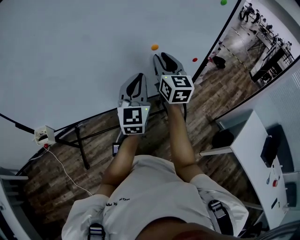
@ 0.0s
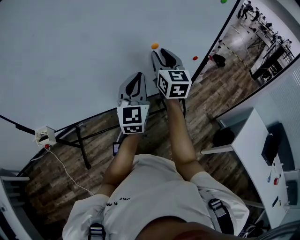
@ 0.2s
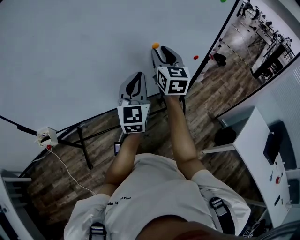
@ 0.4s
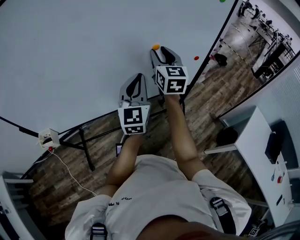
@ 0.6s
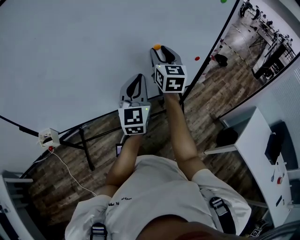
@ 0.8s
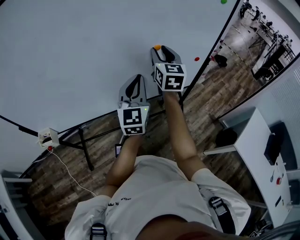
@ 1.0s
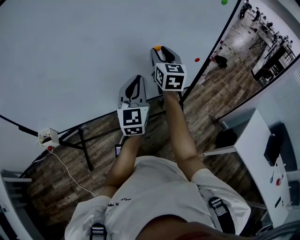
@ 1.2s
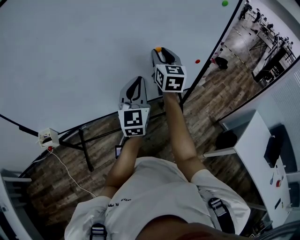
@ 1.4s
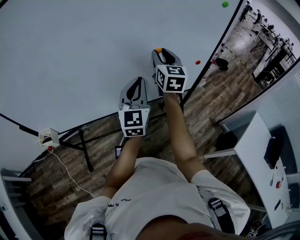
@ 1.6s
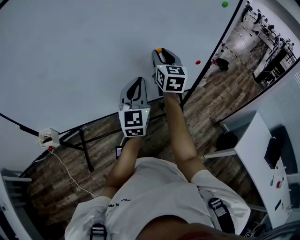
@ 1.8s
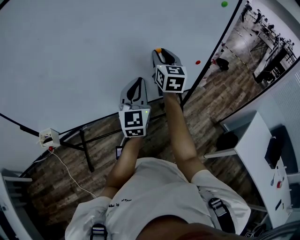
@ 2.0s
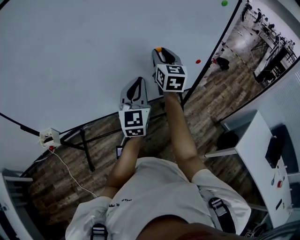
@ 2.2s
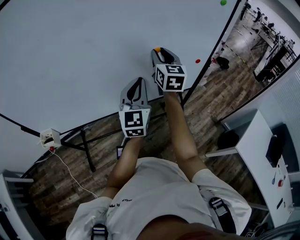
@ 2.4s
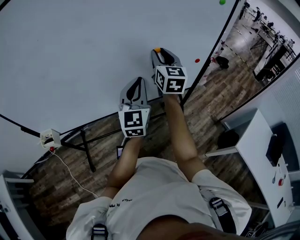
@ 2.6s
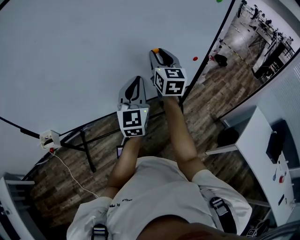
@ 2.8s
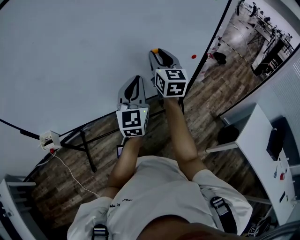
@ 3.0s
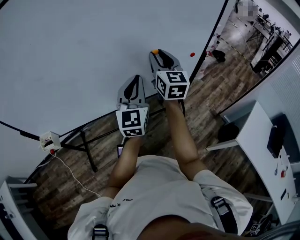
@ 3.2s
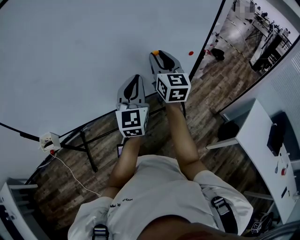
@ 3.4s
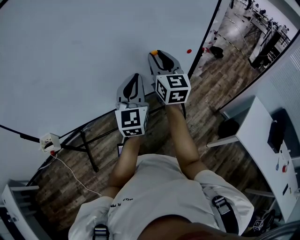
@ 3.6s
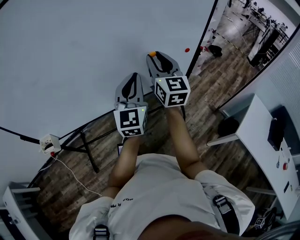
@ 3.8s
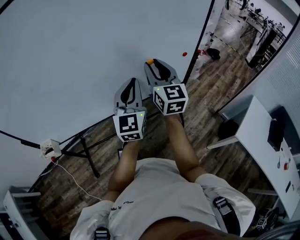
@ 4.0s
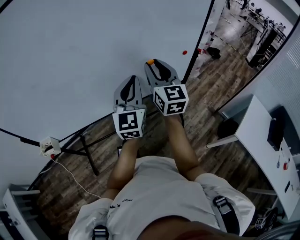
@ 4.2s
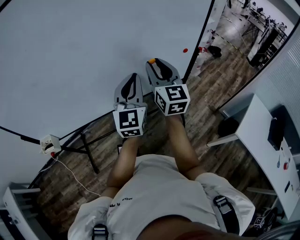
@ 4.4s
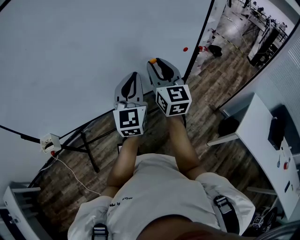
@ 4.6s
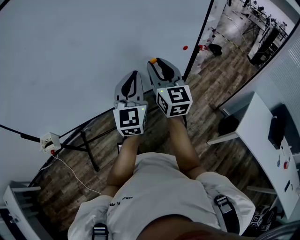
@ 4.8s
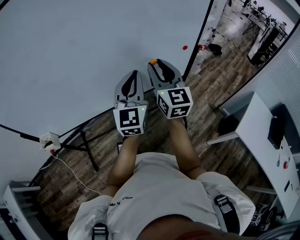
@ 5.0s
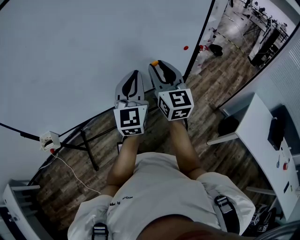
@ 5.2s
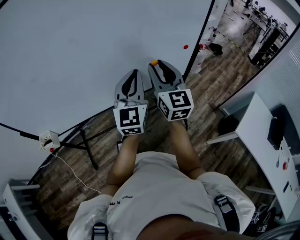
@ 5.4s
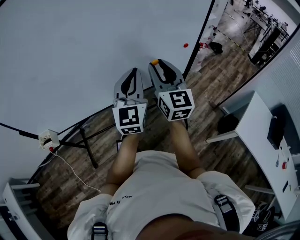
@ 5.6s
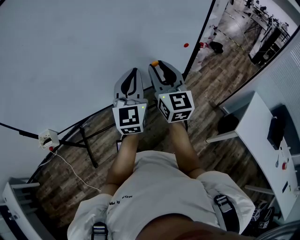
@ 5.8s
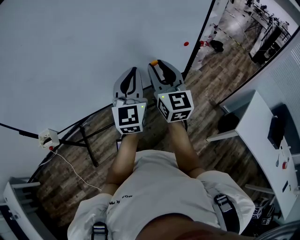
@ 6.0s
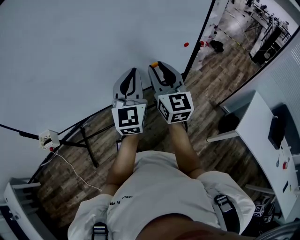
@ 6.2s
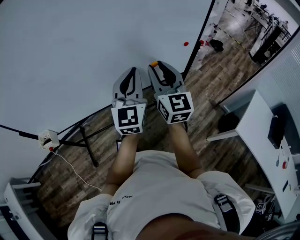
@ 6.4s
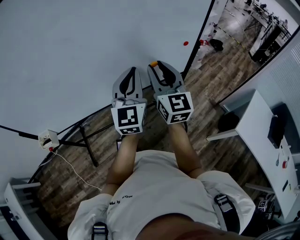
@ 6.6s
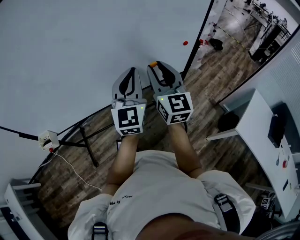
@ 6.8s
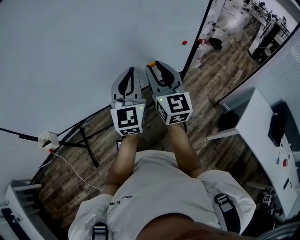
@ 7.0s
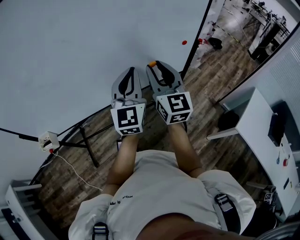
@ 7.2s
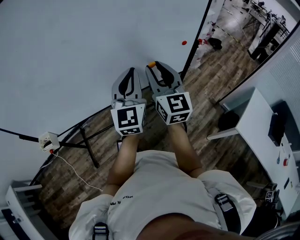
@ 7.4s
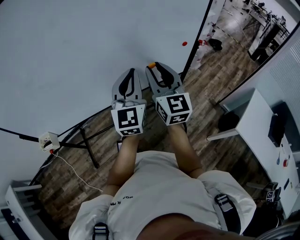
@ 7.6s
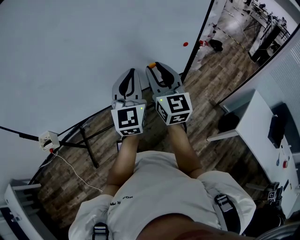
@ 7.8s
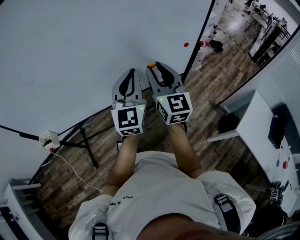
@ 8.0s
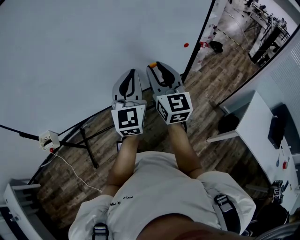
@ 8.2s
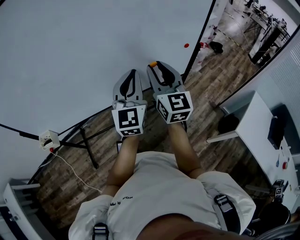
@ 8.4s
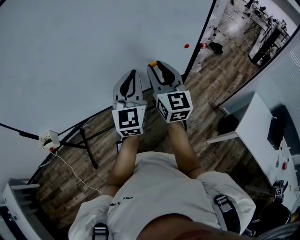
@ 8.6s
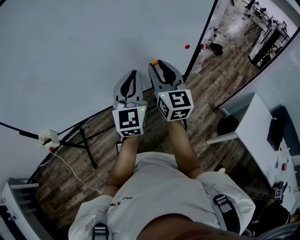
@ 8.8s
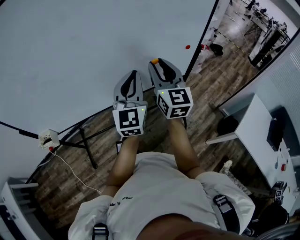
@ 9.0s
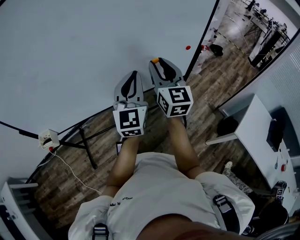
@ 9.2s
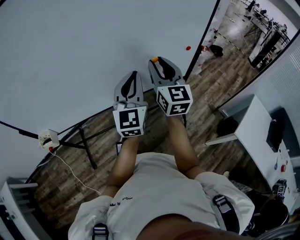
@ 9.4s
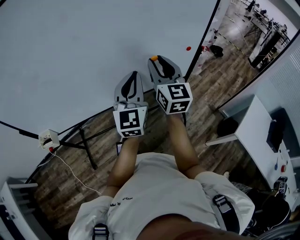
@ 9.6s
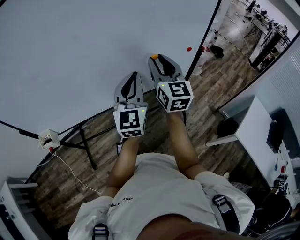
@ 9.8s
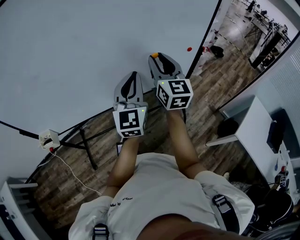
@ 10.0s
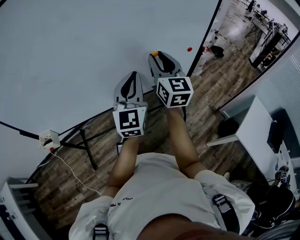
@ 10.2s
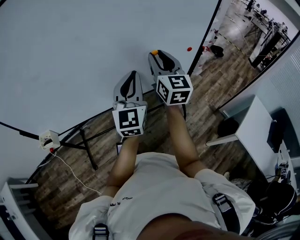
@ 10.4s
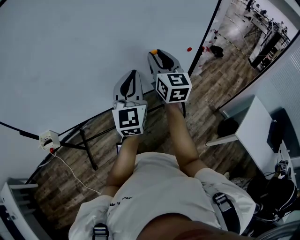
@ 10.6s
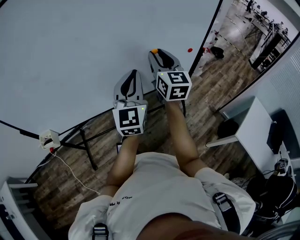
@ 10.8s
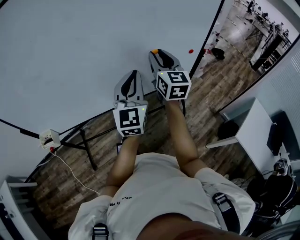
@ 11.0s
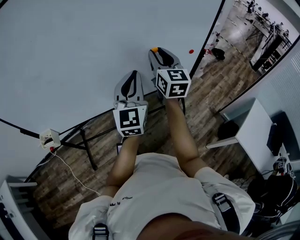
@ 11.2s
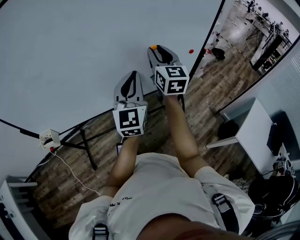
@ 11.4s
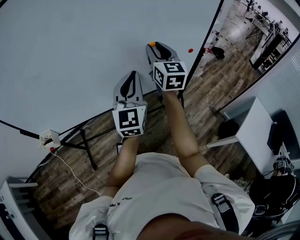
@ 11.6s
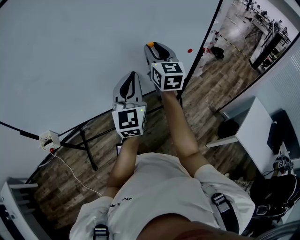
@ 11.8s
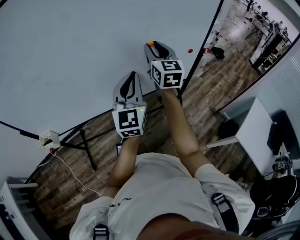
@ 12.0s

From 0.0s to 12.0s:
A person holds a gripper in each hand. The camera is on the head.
From 0.0s to 3.0s: The grippers move only a little.
From 3.0s to 4.4s: The right gripper shifts about 10 cm backward.
From 4.4s to 6.0s: There are only small adjustments of the grippers.
From 6.0s to 7.6s: Neither gripper changes place.
From 7.6s to 9.0s: The grippers move only a little.
From 9.0s to 10.4s: There are only small adjustments of the grippers.
From 10.4s to 12.0s: The right gripper heads forward, covering approximately 5 cm.

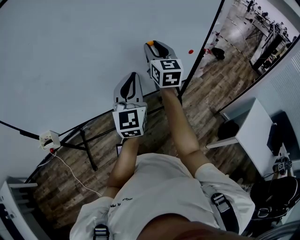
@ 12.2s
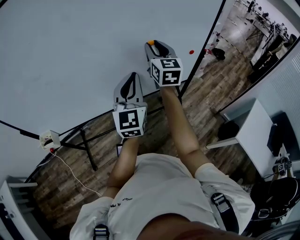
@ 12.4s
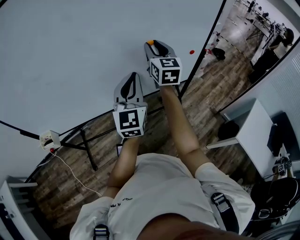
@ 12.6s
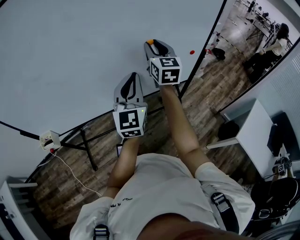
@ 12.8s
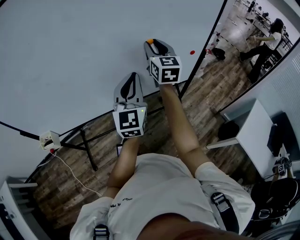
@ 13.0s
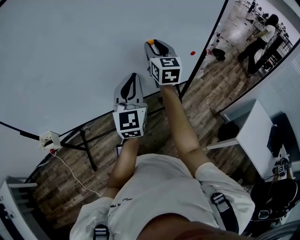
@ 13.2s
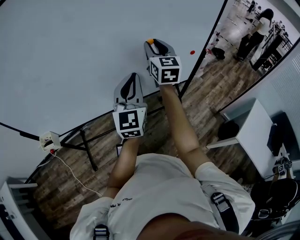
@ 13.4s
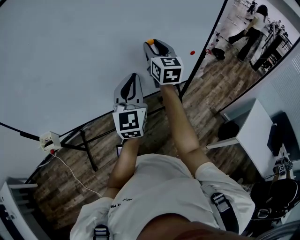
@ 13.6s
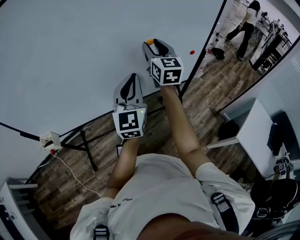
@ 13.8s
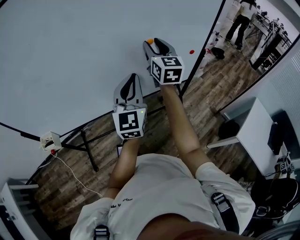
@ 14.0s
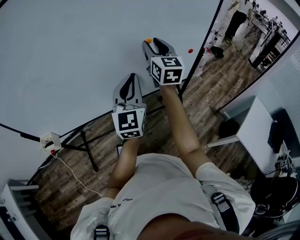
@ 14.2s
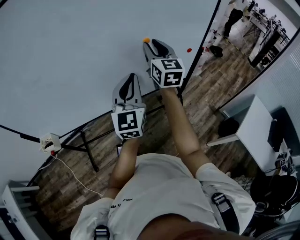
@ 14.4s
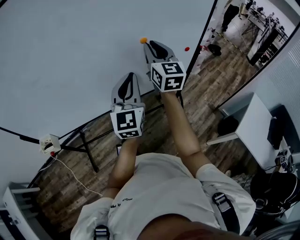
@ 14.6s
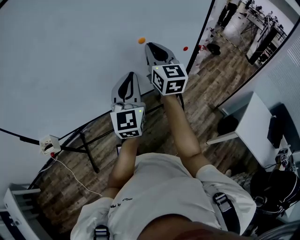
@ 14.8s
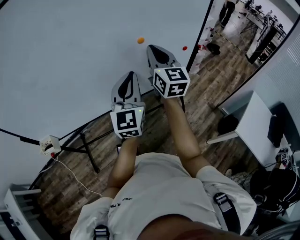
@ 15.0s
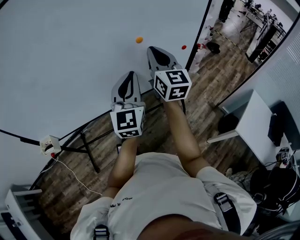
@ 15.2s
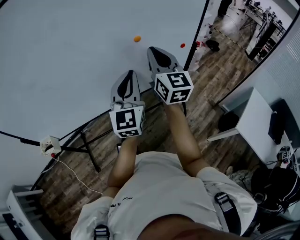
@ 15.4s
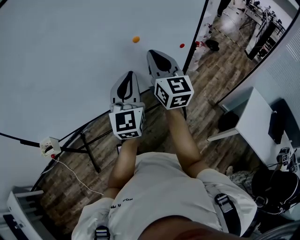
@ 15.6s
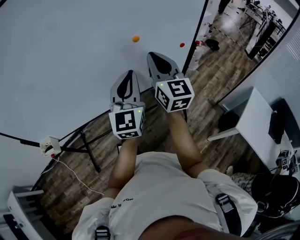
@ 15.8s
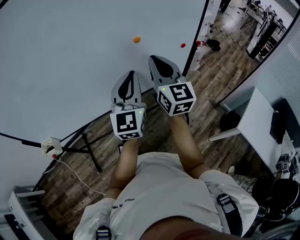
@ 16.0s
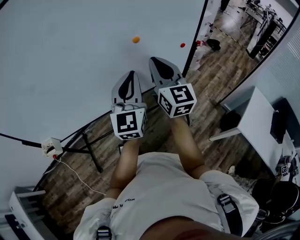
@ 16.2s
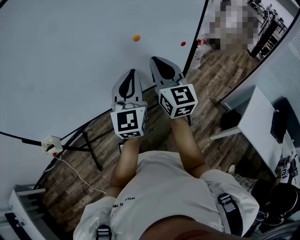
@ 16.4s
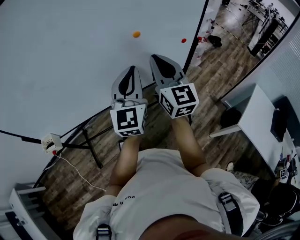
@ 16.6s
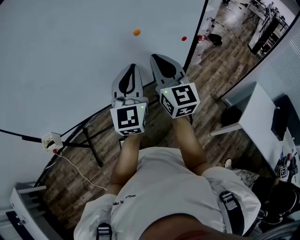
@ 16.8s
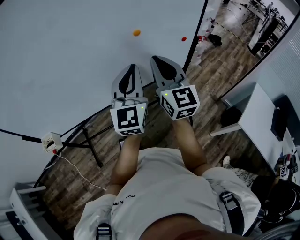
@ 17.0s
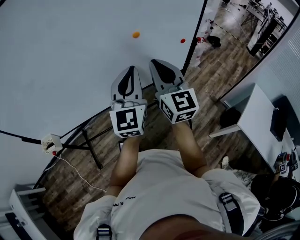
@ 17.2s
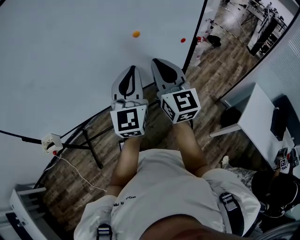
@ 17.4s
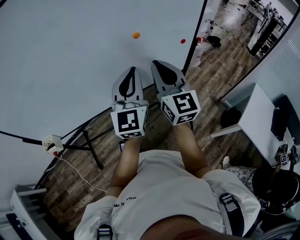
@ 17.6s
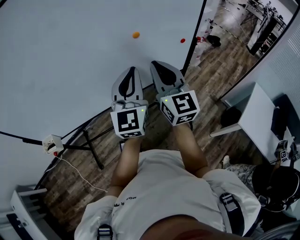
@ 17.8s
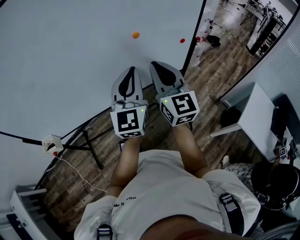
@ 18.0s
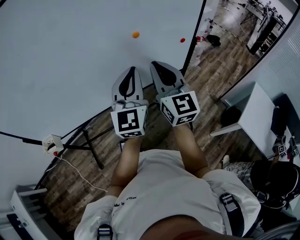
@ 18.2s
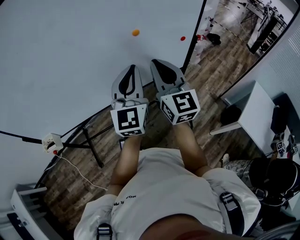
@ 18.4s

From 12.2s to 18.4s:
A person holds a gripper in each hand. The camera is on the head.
From 12.2s to 13.8s: The grippers move only a little.
From 13.8s to 15.4s: The right gripper moves backward, some 10 cm, and closes its fingers.
From 15.4s to 16.8s: The right gripper moves backward, some 5 cm.
From 16.8s to 18.4s: There are only small adjustments of the grippers.

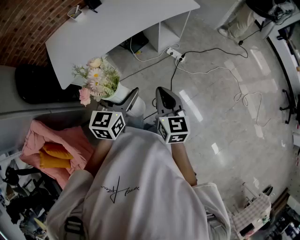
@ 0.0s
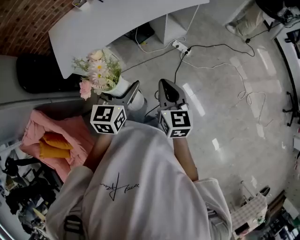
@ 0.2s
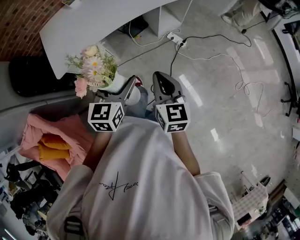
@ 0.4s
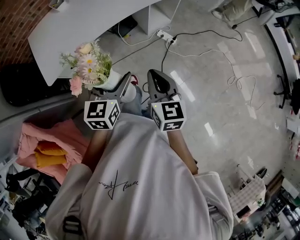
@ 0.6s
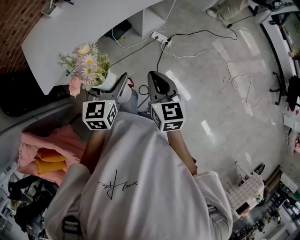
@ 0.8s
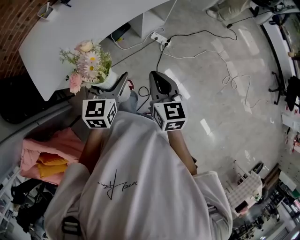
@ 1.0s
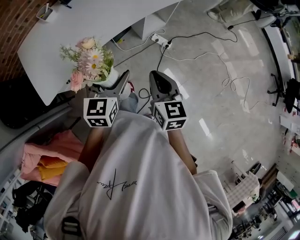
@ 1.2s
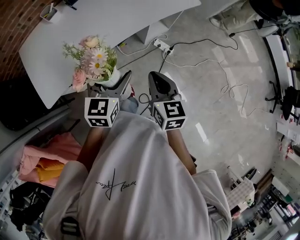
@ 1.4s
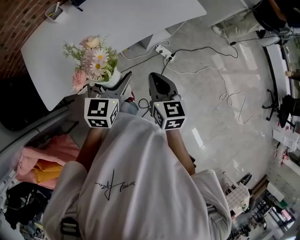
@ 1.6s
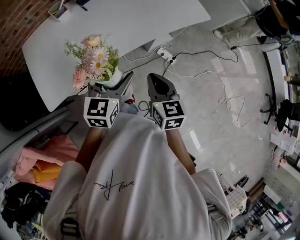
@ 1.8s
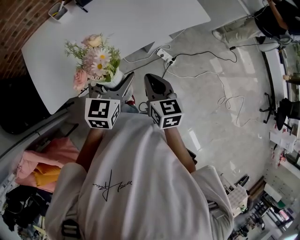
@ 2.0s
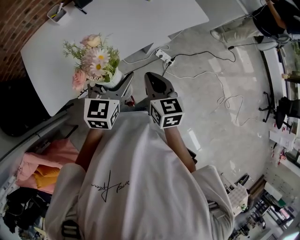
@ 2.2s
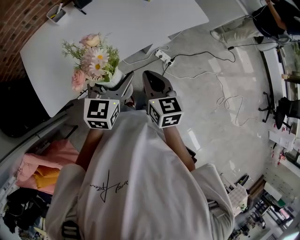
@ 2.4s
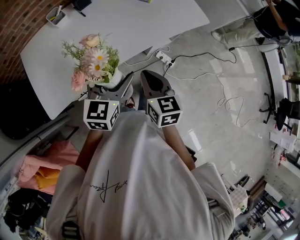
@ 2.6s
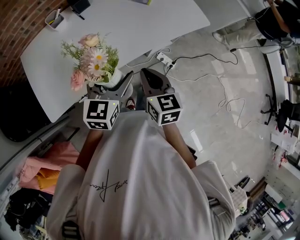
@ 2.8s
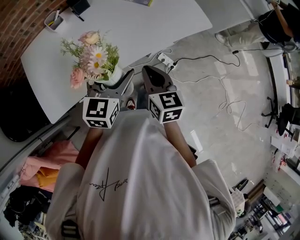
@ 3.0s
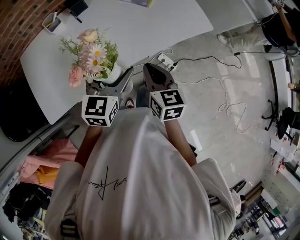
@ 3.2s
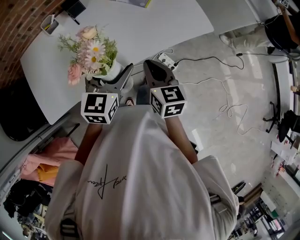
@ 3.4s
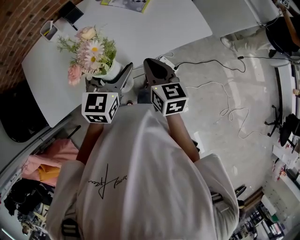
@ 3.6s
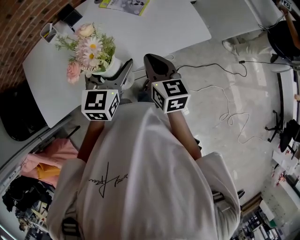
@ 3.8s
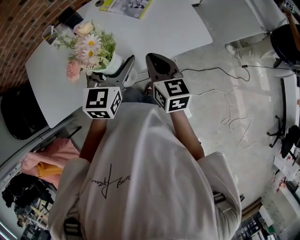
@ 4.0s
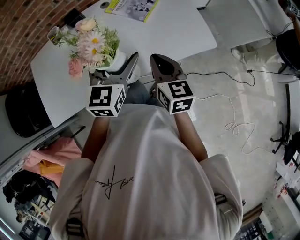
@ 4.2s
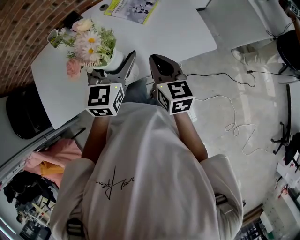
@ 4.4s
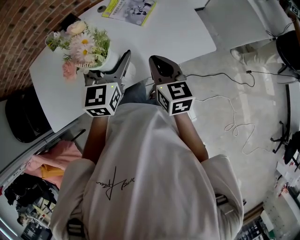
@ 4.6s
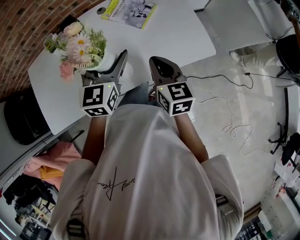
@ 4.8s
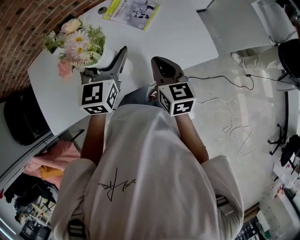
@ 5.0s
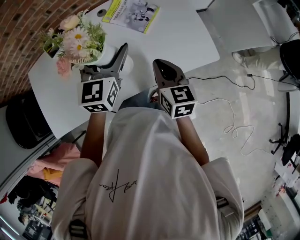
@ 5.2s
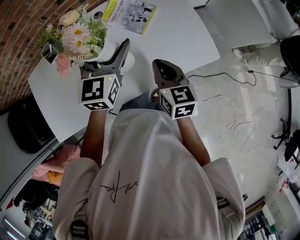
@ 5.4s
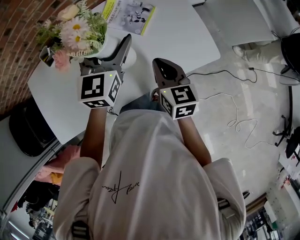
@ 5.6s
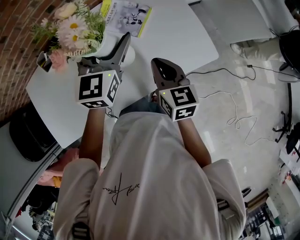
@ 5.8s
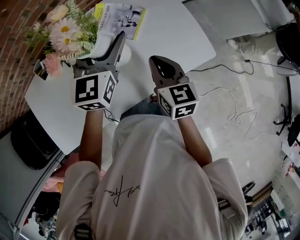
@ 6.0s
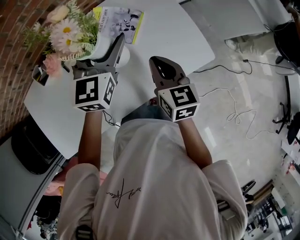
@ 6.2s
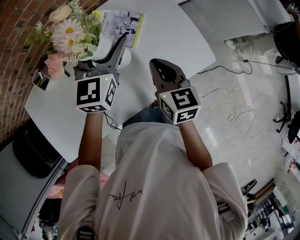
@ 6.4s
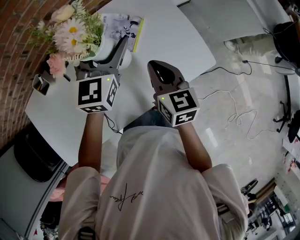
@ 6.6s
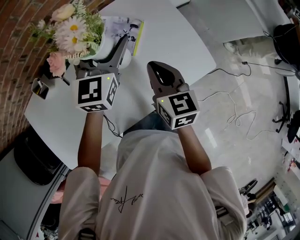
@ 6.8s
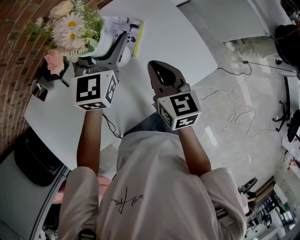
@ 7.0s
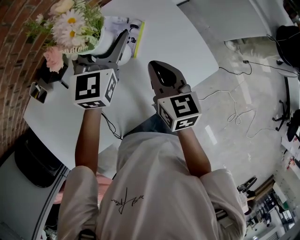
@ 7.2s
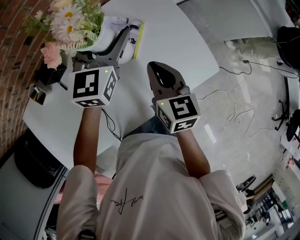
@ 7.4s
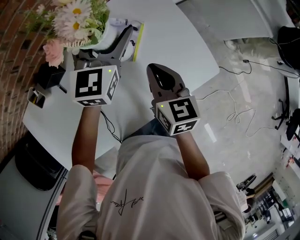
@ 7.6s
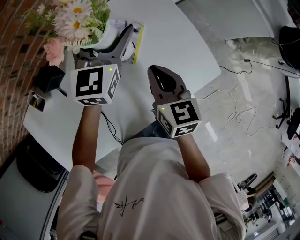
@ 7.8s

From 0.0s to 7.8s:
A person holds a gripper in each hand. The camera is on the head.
From 0.0s to 1.6s: The two grippers go roughly 25 cm forward.
From 1.6s to 3.2s: Both grippers travel together forward, about 15 cm.
From 3.2s to 4.6s: Both grippers travel together forward and to the right, about 20 cm.
From 4.6s to 6.2s: The left gripper shifts about 20 cm forward. Meanwhile the right gripper goes some 10 cm forward.
From 6.2s to 7.8s: The left gripper moves forward, approximately 15 cm. The right gripper moves forward, about 10 cm.
